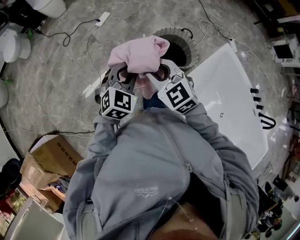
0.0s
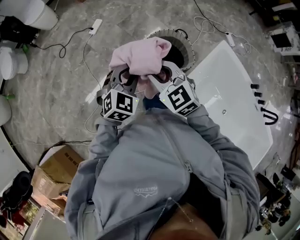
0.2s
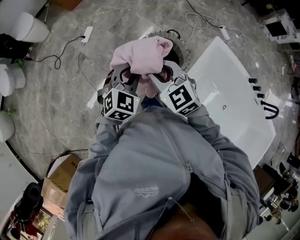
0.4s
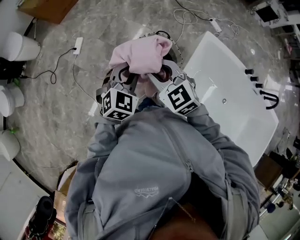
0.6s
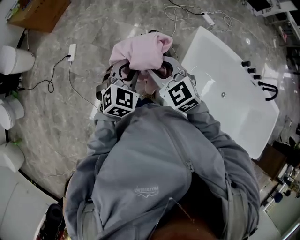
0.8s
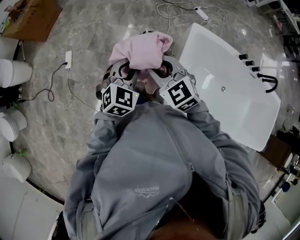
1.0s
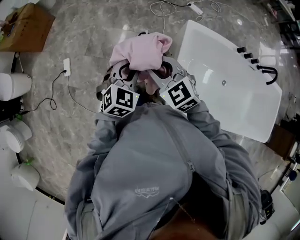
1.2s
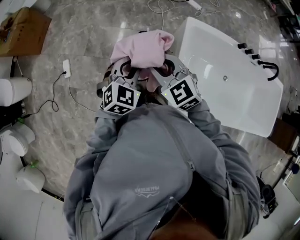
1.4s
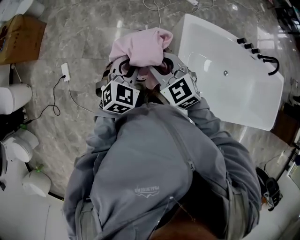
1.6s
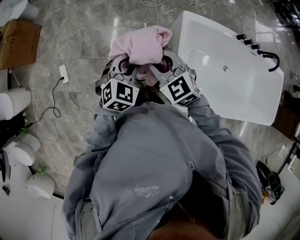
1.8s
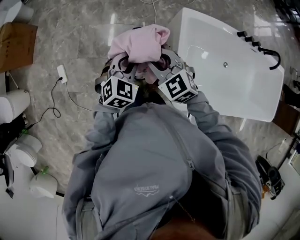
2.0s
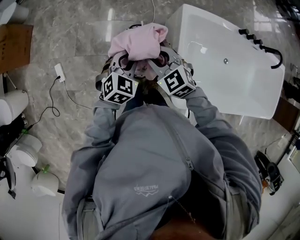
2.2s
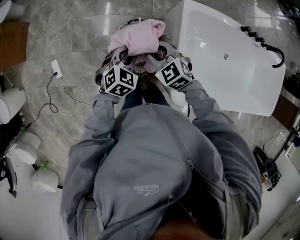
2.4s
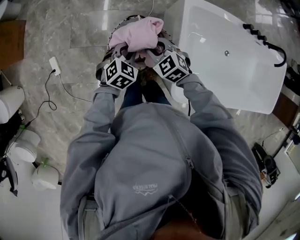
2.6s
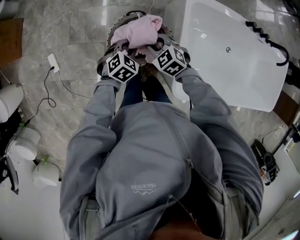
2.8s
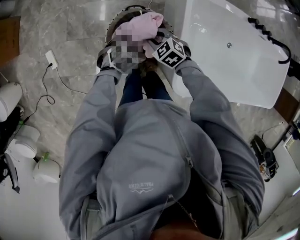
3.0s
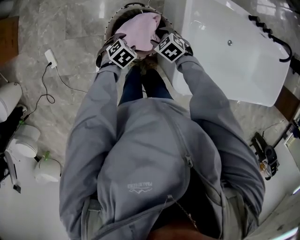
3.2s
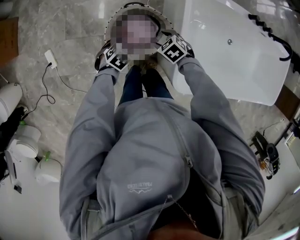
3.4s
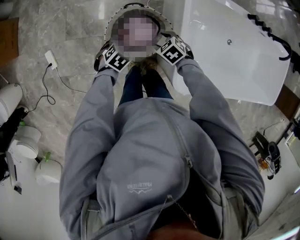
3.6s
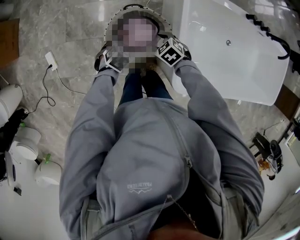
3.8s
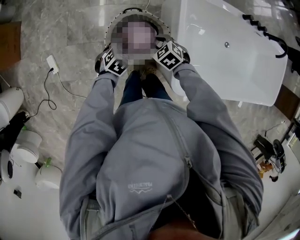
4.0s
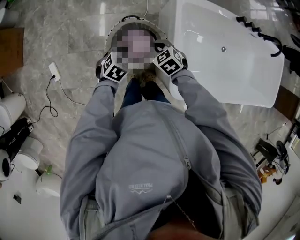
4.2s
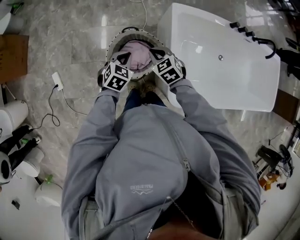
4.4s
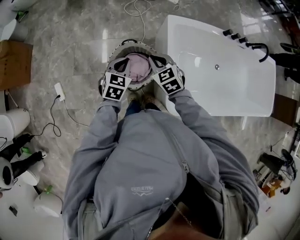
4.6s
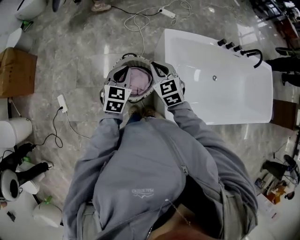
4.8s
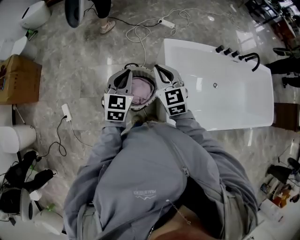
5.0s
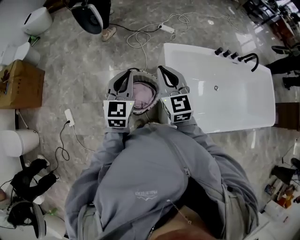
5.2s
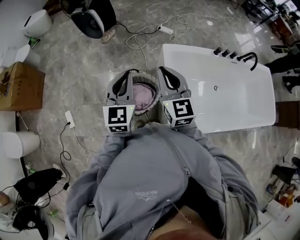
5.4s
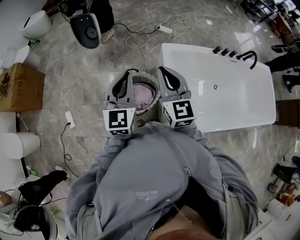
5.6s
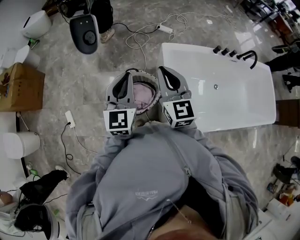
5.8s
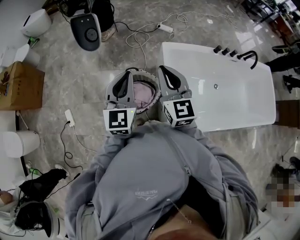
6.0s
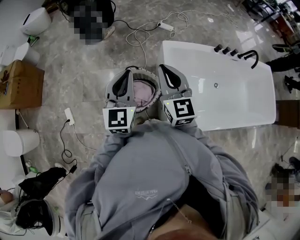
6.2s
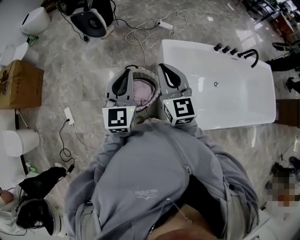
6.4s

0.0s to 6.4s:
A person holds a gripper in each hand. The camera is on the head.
0.0s to 1.6s: The right gripper shifts by roughly 30 cm, and rotates about 40 degrees, while the left gripper changes place by roughly 35 cm, and turns by some 40 degrees.
1.6s to 3.2s: The grippers both shift downward by roughly 30 cm. The left gripper points its fingers about 30 degrees further downward, and opens. The right gripper tips its fingers downward by about 40 degrees.
3.2s to 4.8s: Both grippers move upward, roughly 25 cm. The right gripper points its fingers approximately 30 degrees further upward, and closes. Meanwhile the left gripper angles its fingers upward, by about 40 degrees, and closes up.
4.8s to 6.4s: Both grippers move upward, some 15 cm. The right gripper turns by approximately 30 degrees; the left gripper rotates approximately 30 degrees.

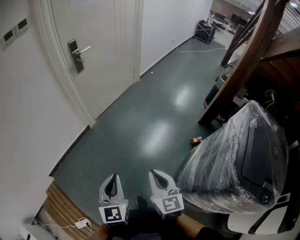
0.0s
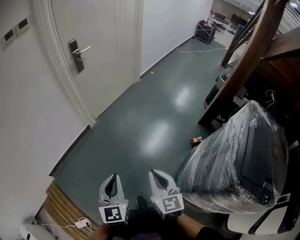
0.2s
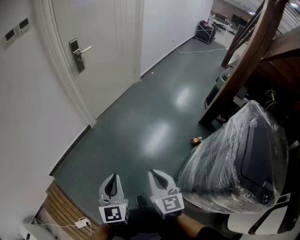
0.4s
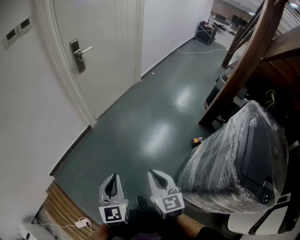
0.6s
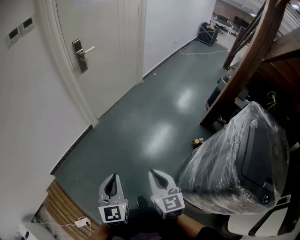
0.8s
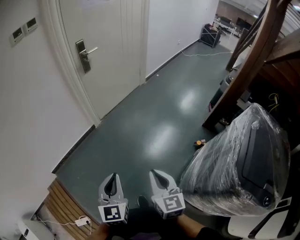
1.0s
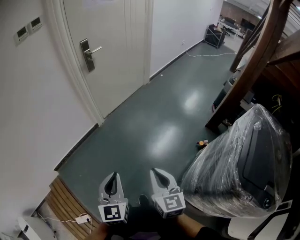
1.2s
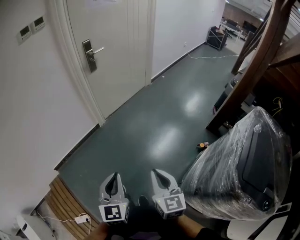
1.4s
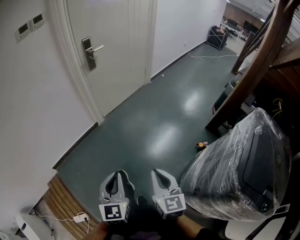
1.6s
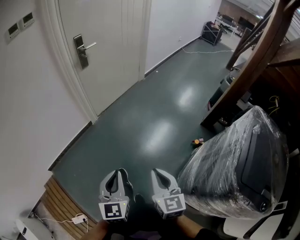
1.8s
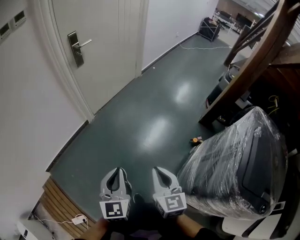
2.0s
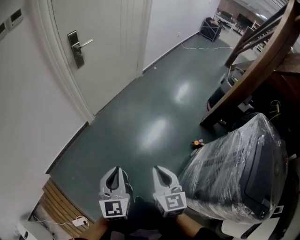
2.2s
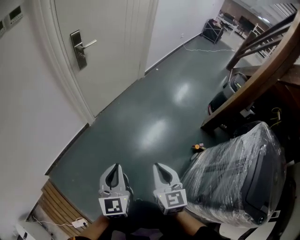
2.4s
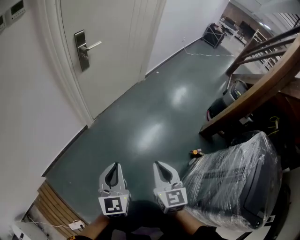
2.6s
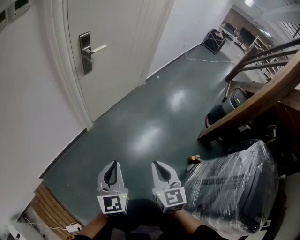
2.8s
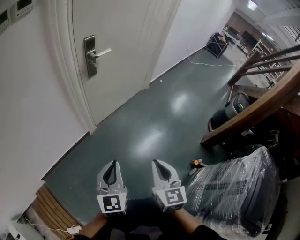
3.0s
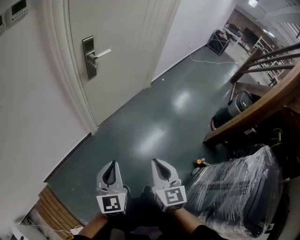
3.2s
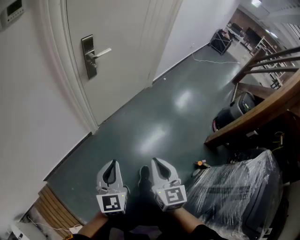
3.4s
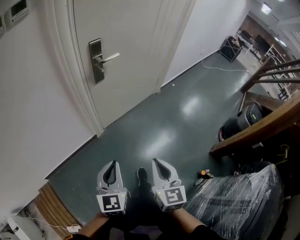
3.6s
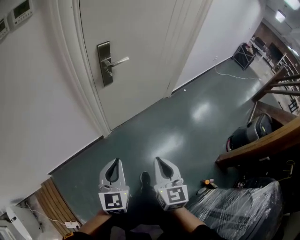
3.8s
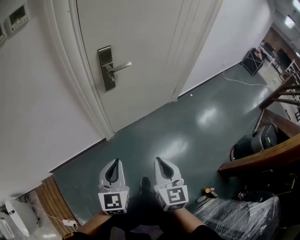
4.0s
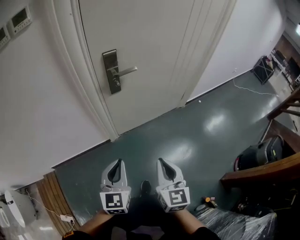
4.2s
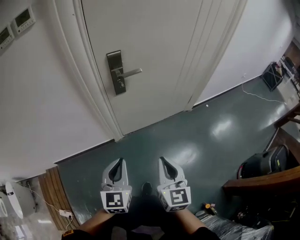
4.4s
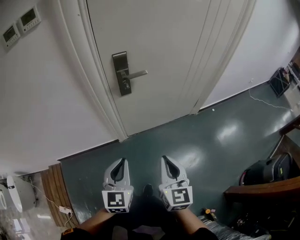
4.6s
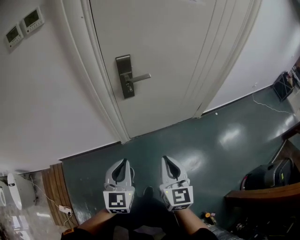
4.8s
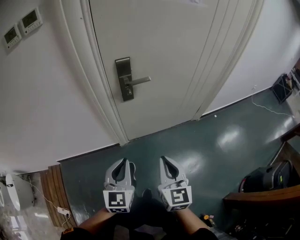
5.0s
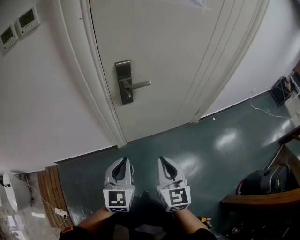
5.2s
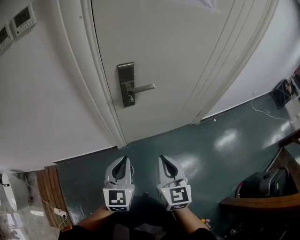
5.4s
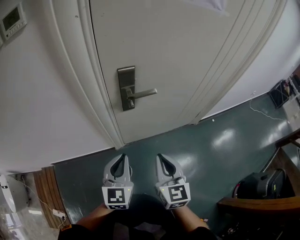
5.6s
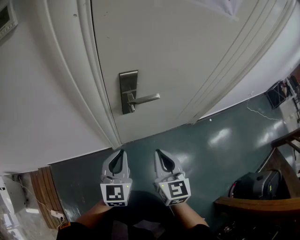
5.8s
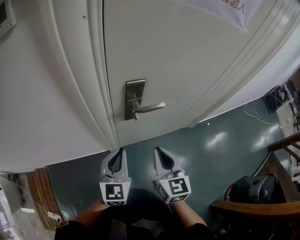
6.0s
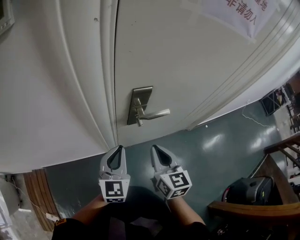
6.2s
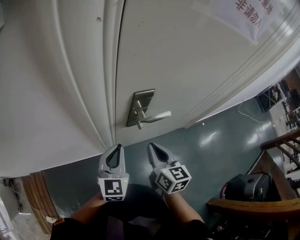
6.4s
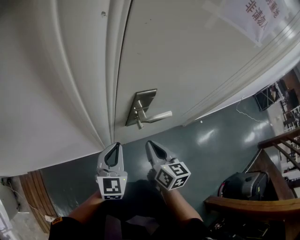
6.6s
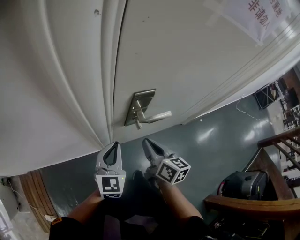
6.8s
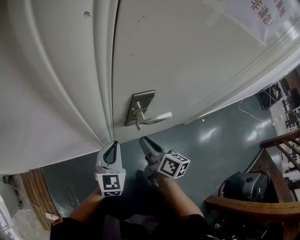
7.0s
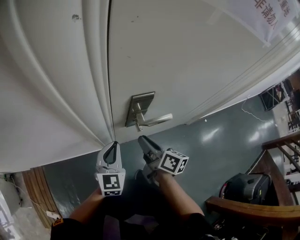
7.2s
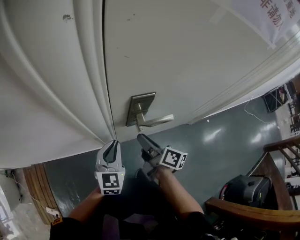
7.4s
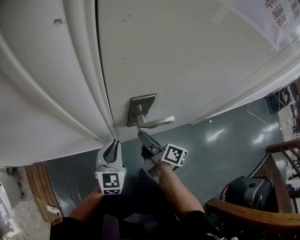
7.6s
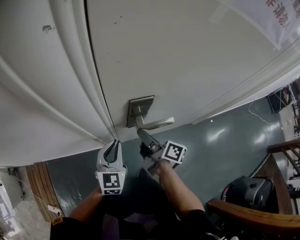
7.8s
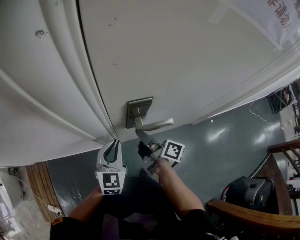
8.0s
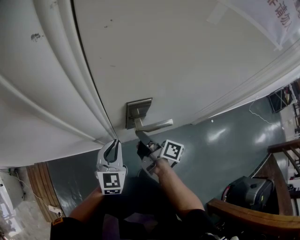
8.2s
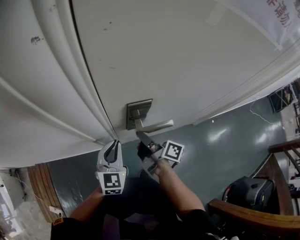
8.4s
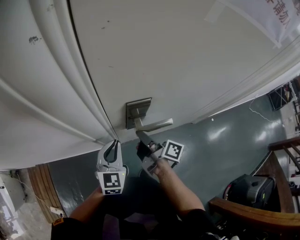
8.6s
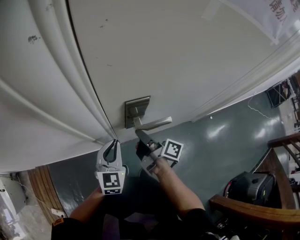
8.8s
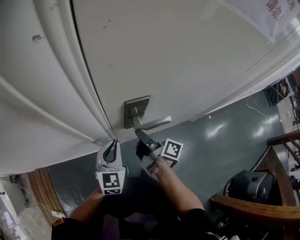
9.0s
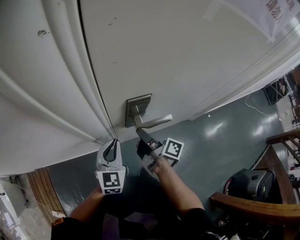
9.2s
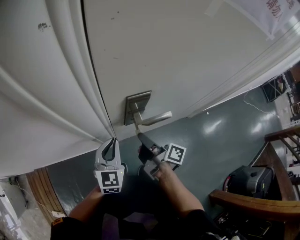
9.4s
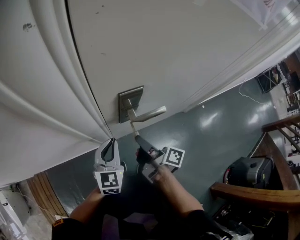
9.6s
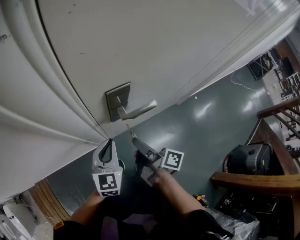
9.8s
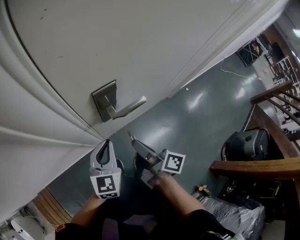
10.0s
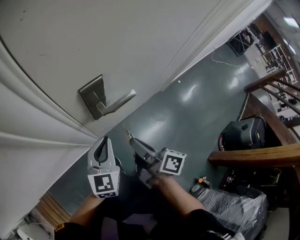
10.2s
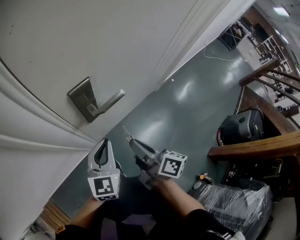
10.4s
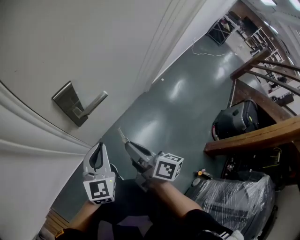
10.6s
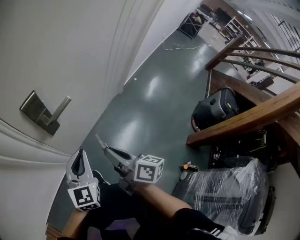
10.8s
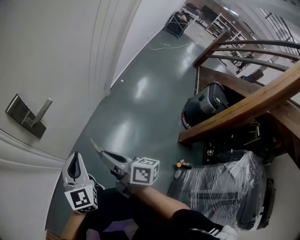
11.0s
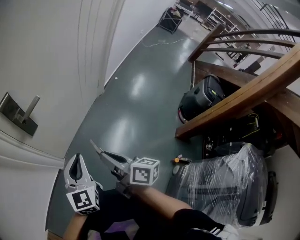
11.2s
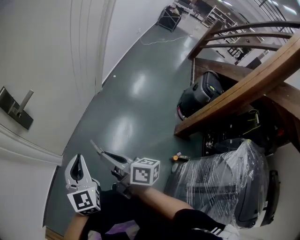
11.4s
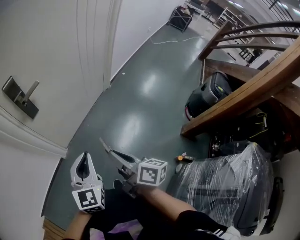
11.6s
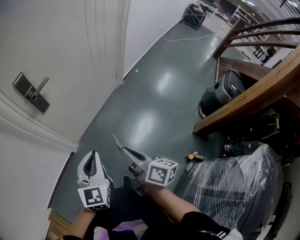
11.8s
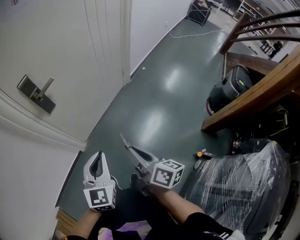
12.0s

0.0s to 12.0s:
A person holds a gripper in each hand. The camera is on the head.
0.0s to 1.6s: There are only small adjustments of the grippers.
1.6s to 3.0s: Both grippers move forward, approximately 30 cm.
3.0s to 4.4s: The grippers both shift forward by some 25 cm. The right gripper swivels about 20 degrees; the left gripper rotates some 20 degrees.
4.4s to 6.0s: The two grippers go roughly 25 cm forward.
6.0s to 7.6s: Both grippers move forward and downward, some 15 cm. The right gripper rotates around the line of its fingers by some 60 degrees, clockwise from behind, and opens.
7.6s to 9.0s: The grippers move only a little.
9.0s to 10.4s: The right gripper moves backward and to the right, about 15 cm, and changes its angle by some 30 degrees, while the left gripper shifts roughly 10 cm to the right and backward, and swivels some 20 degrees.
10.4s to 12.0s: The two grippers go some 35 cm backward and to the right.

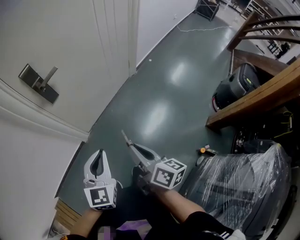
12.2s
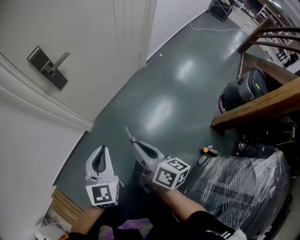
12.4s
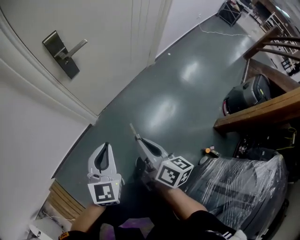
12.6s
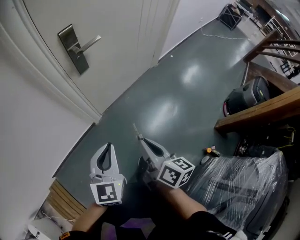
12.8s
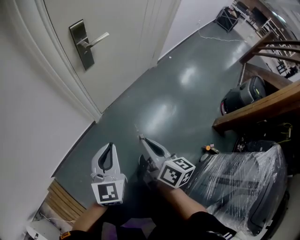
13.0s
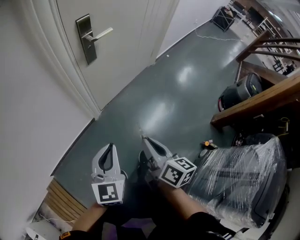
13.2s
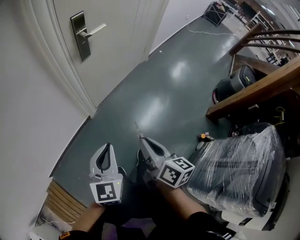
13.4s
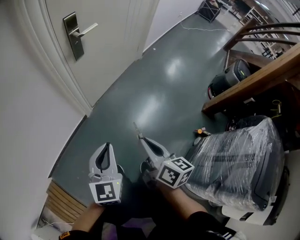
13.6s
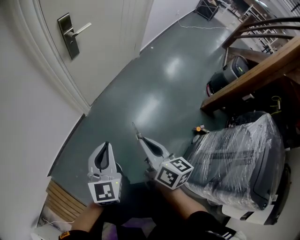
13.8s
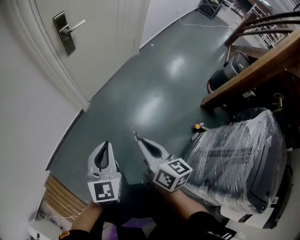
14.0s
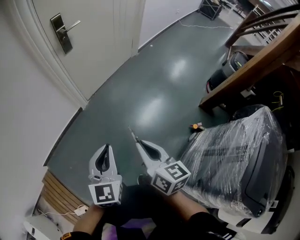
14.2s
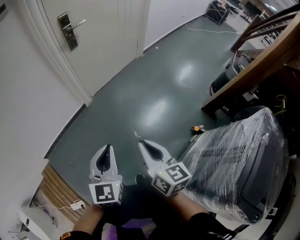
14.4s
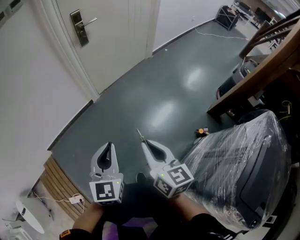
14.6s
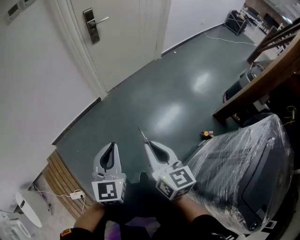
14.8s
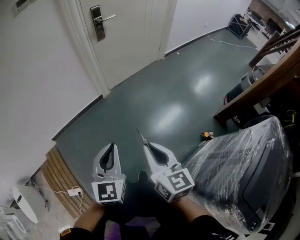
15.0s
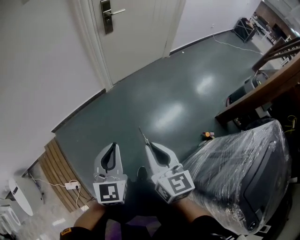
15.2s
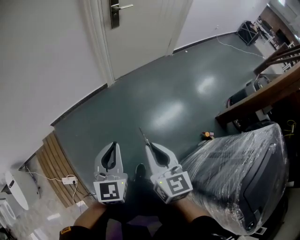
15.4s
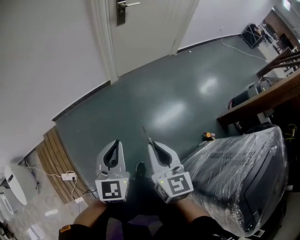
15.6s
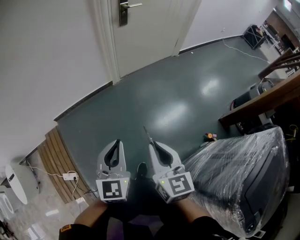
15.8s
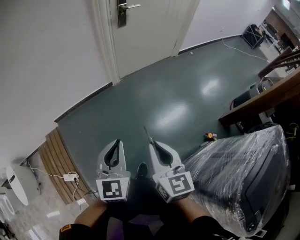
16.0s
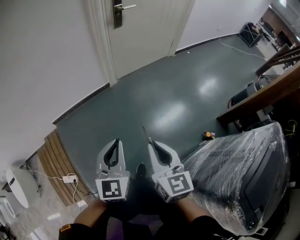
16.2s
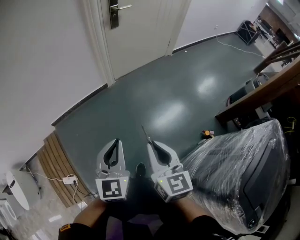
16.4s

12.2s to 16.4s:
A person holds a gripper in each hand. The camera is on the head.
12.2s to 13.6s: The left gripper shifts some 25 cm to the left and backward. Meanwhile the right gripper heads backward and to the left, covering about 25 cm.
13.6s to 15.0s: The two grippers go roughly 25 cm backward. The right gripper changes its angle by some 30 degrees.
15.0s to 16.4s: The right gripper ends up some 5 cm from where it was. Meanwhile the left gripper shifts by roughly 5 cm.

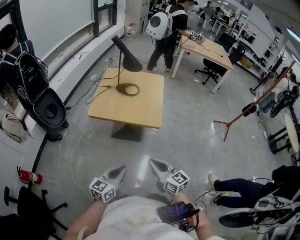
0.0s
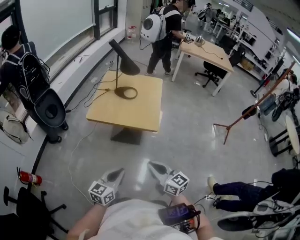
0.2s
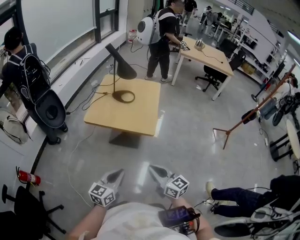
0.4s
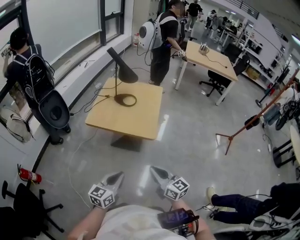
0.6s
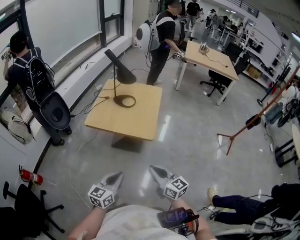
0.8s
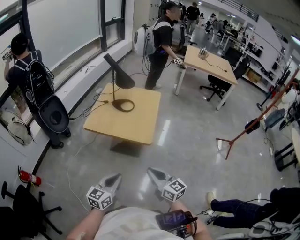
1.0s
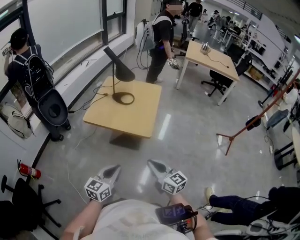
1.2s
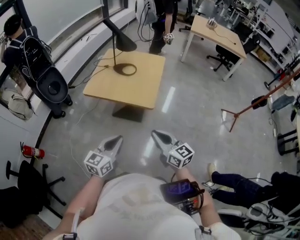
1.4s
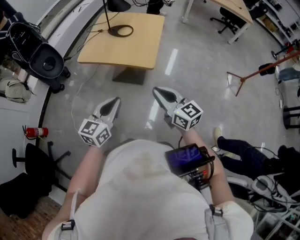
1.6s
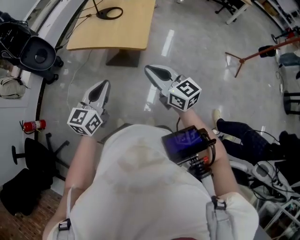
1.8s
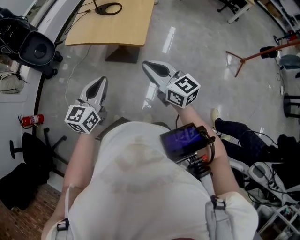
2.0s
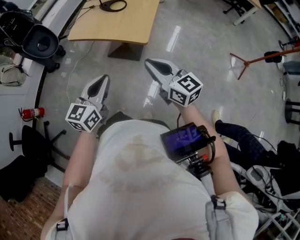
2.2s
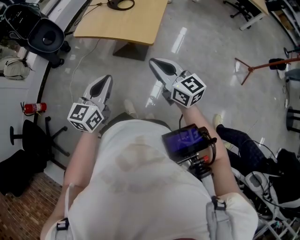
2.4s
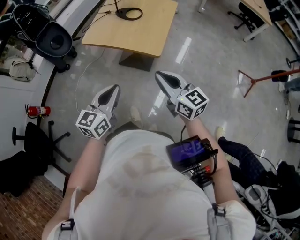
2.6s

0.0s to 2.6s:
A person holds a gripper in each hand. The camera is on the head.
0.0s to 1.2s: Both grippers travel together to the right, roughly 10 cm.
1.2s to 2.6s: The right gripper moves some 5 cm.
